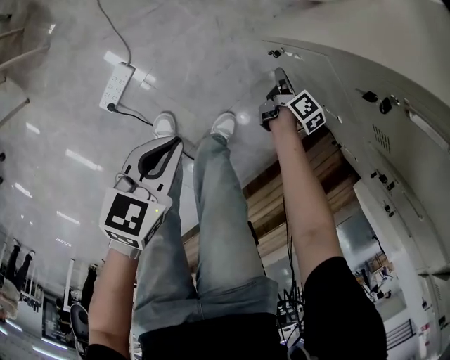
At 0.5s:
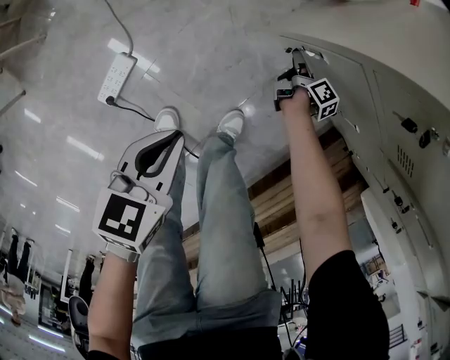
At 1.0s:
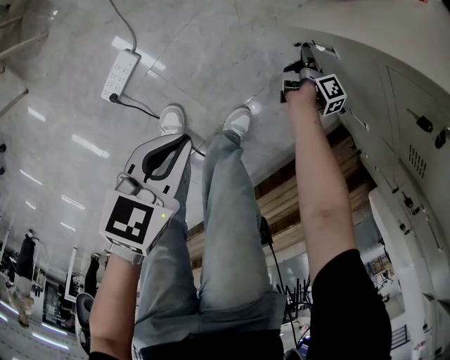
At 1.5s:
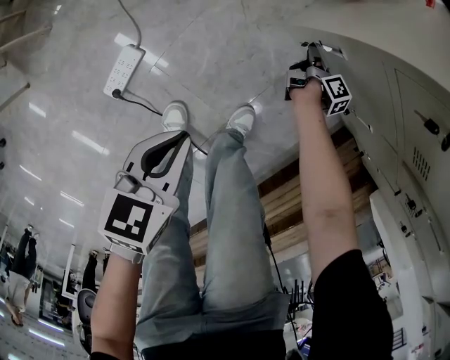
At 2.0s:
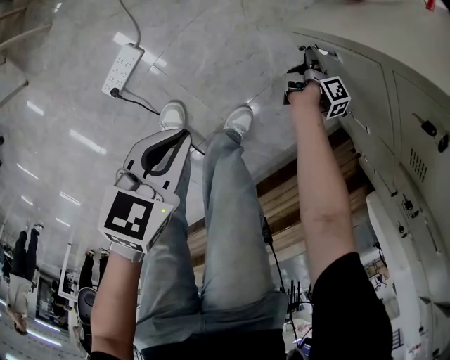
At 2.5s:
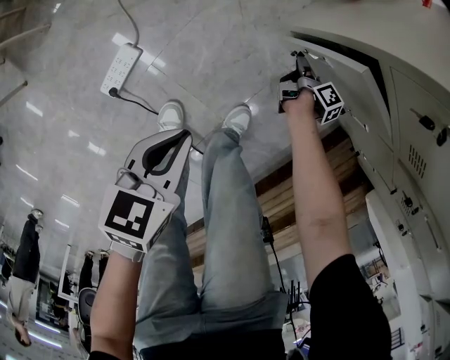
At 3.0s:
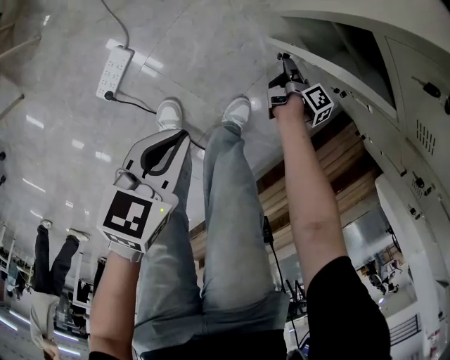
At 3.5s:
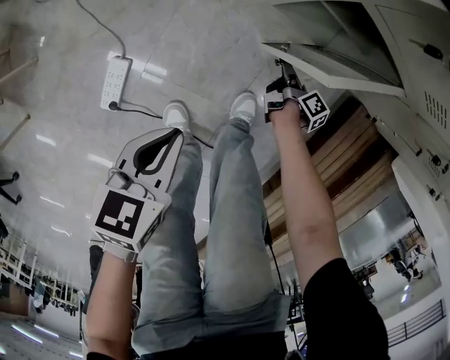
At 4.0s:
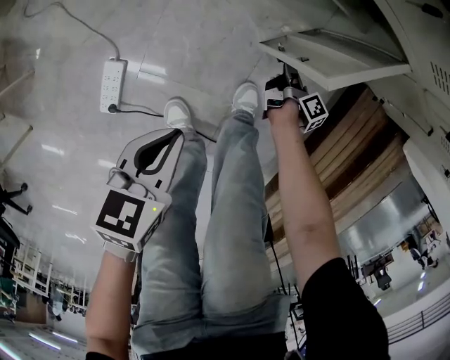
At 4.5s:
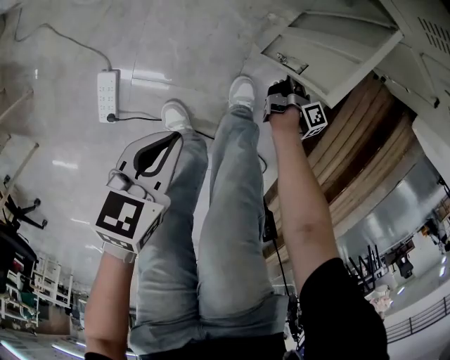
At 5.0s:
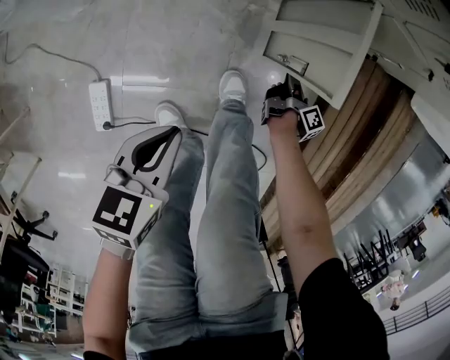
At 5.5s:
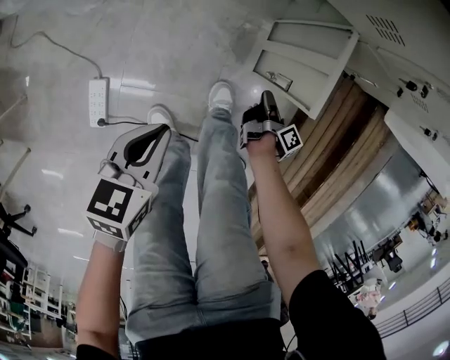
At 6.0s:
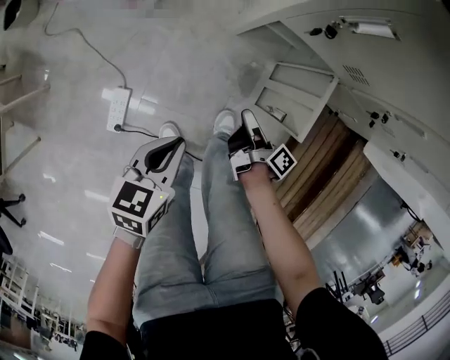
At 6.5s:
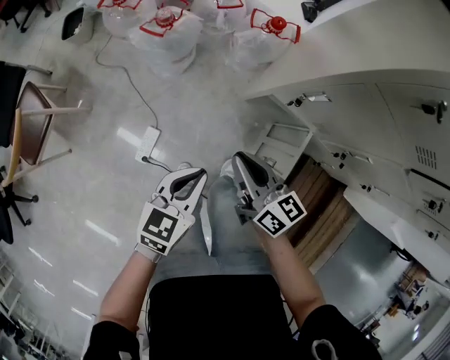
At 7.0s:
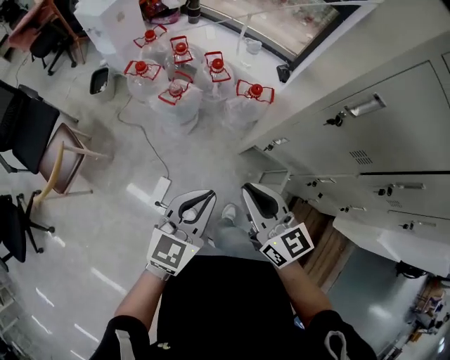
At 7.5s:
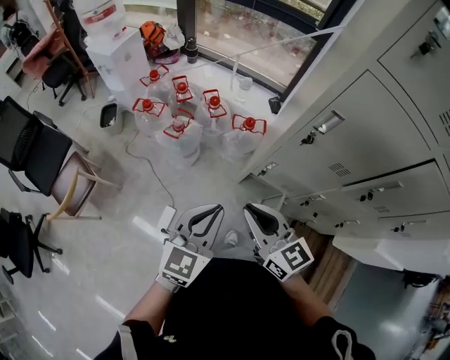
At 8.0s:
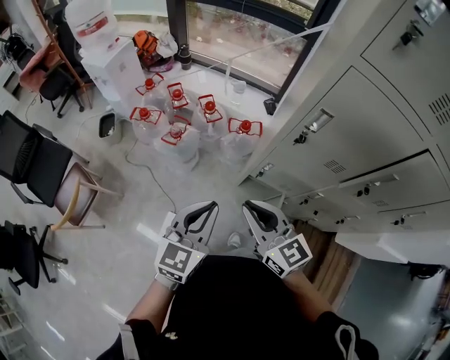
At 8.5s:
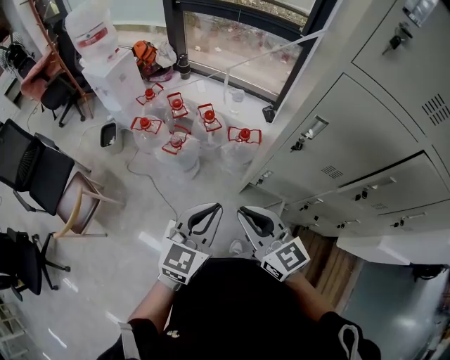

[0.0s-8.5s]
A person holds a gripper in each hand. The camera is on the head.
0.0s to 2.0s: Both grippers move downward, some 10 cm. The right gripper rotates roughly 20 degrees.
2.0s to 4.0s: The right gripper heads backward and to the right, covering approximately 20 cm, and rotates approximately 20 degrees; the left gripper changes place by some 5 cm.
4.0s to 6.5s: The right gripper goes some 60 cm upward, and rotates approximately 80 degrees, while the left gripper shifts some 30 cm upward, and changes its angle by some 20 degrees.
6.5s to 8.5s: Both grippers travel together upward, roughly 35 cm. The left gripper swivels about 30 degrees, while the right gripper changes its angle by roughly 30 degrees.

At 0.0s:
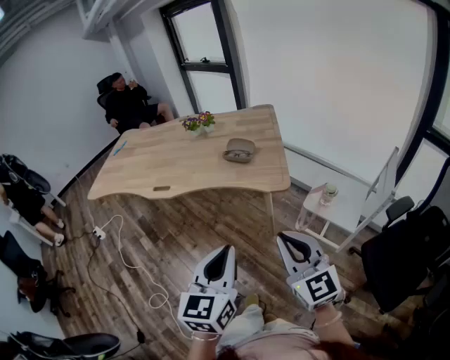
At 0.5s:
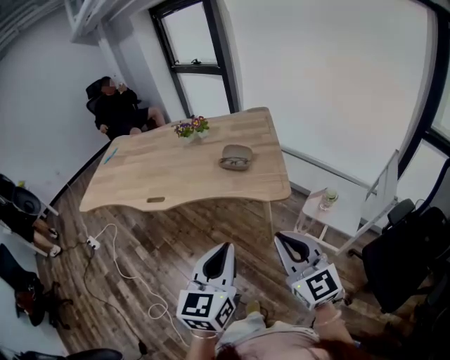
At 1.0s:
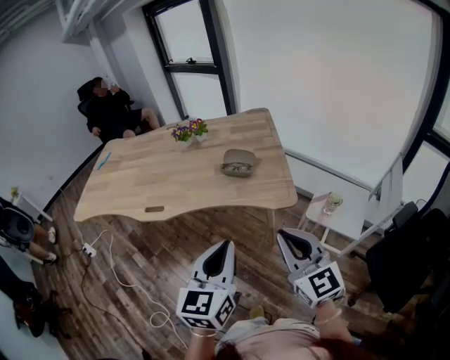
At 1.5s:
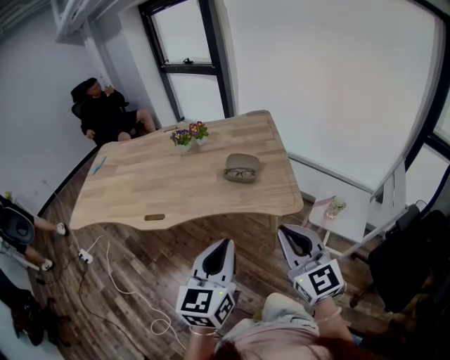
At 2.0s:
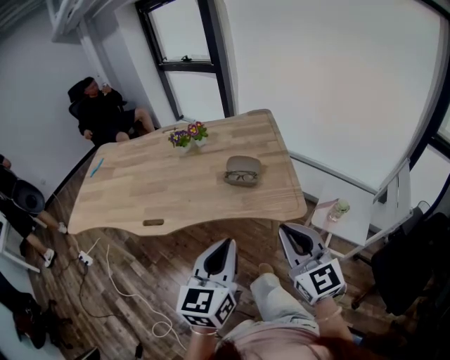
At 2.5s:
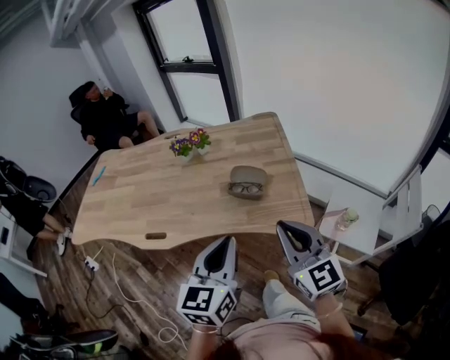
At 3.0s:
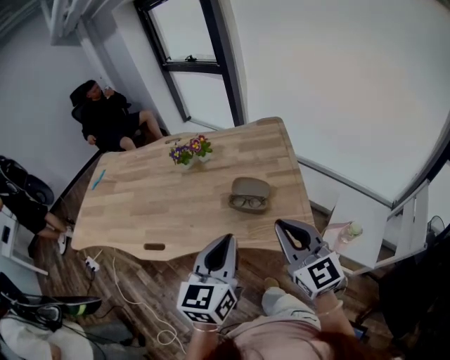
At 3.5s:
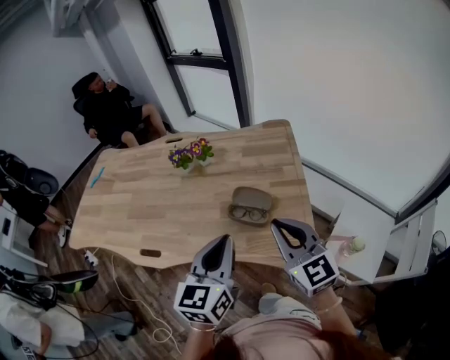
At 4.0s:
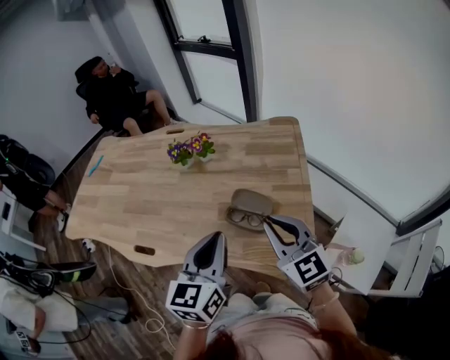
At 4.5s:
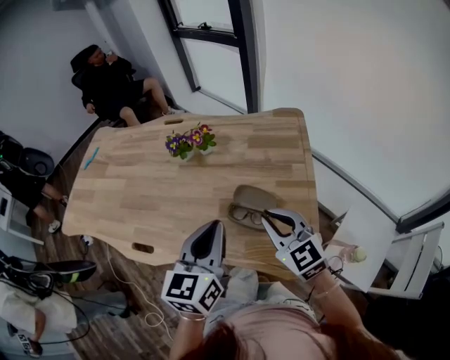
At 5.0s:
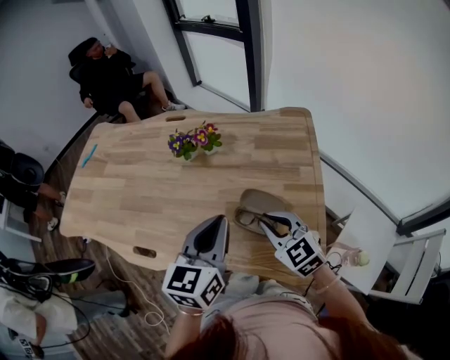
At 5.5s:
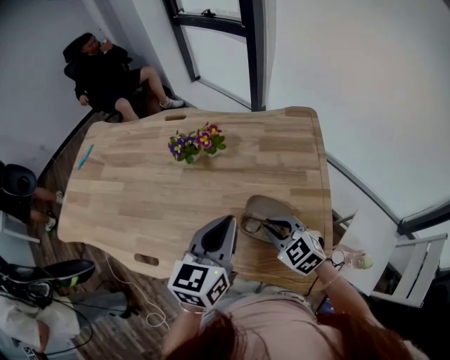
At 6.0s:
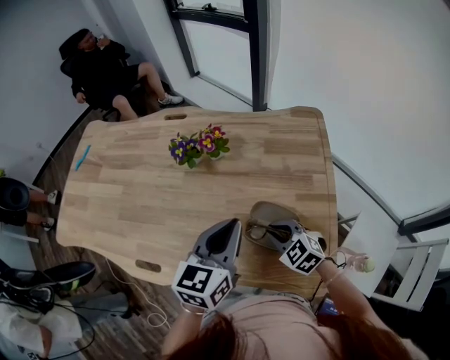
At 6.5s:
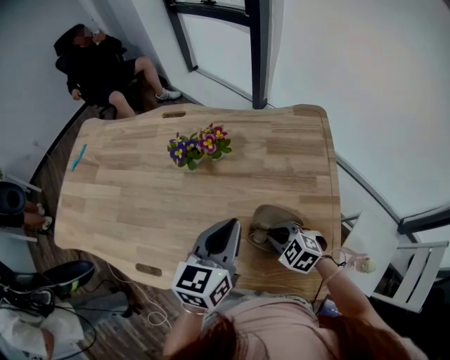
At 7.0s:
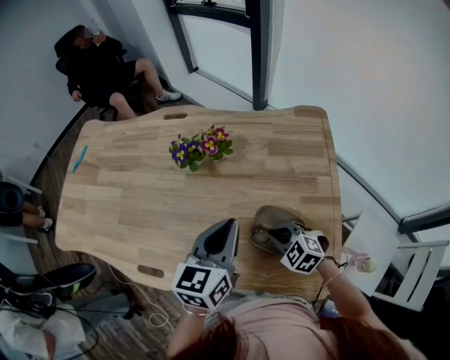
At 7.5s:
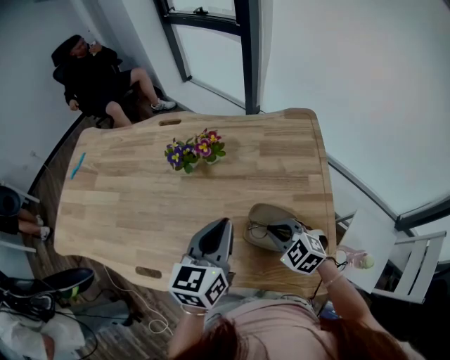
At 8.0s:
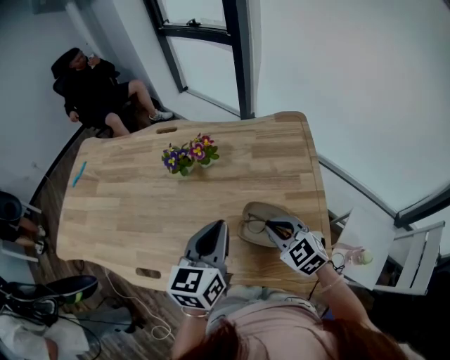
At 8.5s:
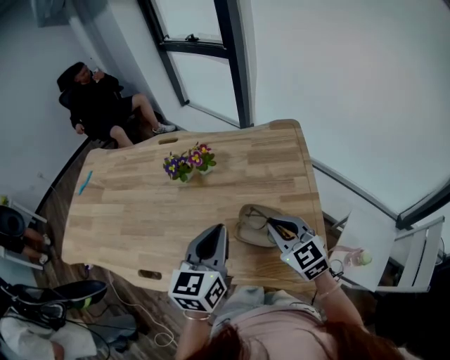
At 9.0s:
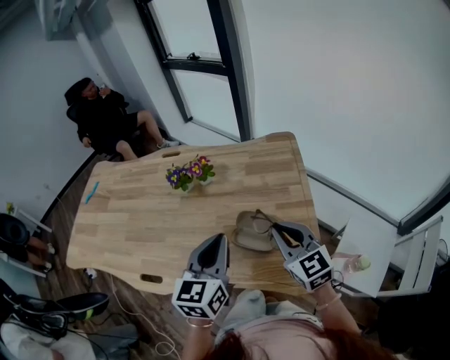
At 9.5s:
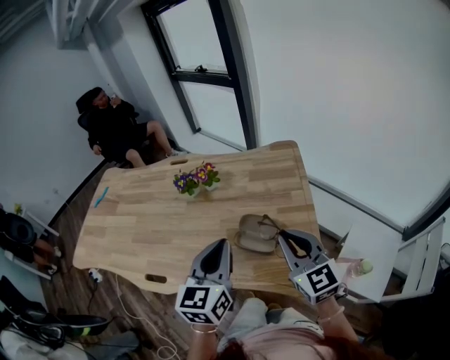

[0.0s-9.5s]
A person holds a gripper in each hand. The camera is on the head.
0.0s to 2.0s: The grippers both shift forward by some 20 cm.
2.0s to 4.0s: Both grippers travel together forward, about 25 cm.
4.0s to 5.5s: The left gripper heads forward, covering about 10 cm; the right gripper heads downward and forward, covering some 20 cm, and swivels roughly 30 degrees.
5.5s to 7.5s: The left gripper ends up approximately 5 cm from where it was.
7.5s to 9.5s: The left gripper goes roughly 15 cm backward and upward; the right gripper heads upward and backward, covering approximately 25 cm, and tips its fingers upward by approximately 40 degrees.

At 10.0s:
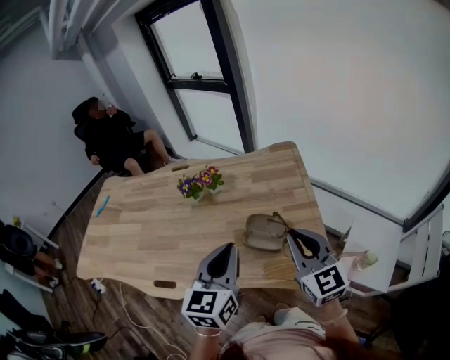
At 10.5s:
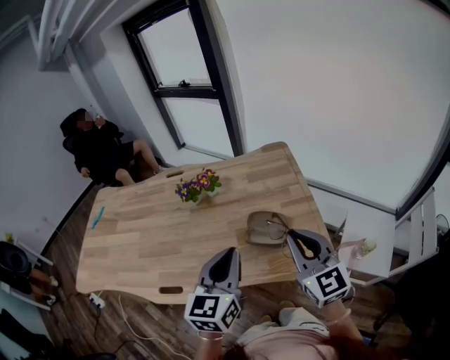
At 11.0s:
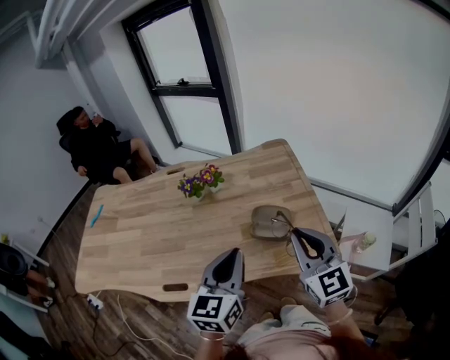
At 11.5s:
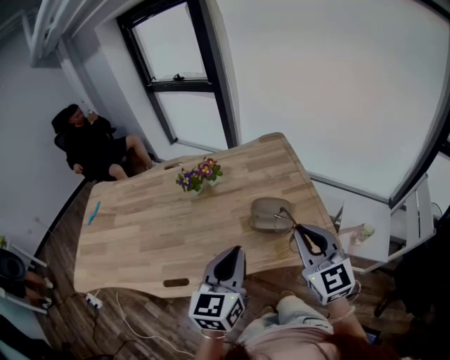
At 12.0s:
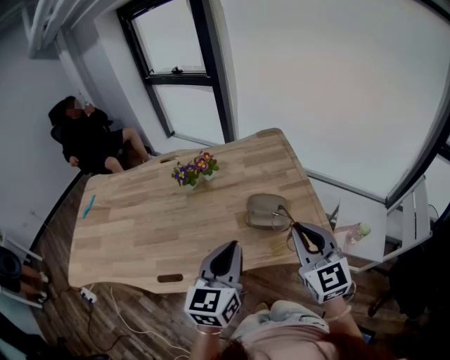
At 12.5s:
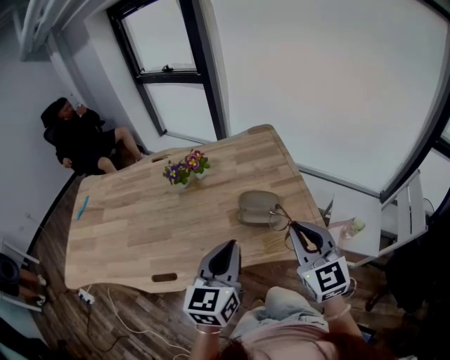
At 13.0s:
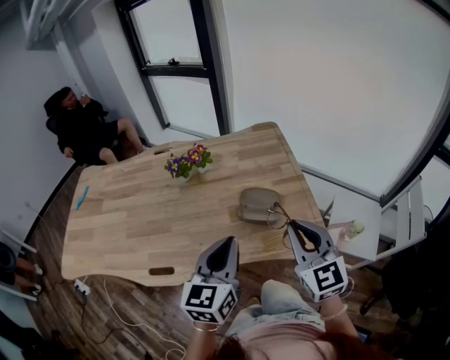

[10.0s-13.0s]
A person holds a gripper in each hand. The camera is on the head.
10.0s to 11.5s: Both grippers travel together backward and to the left, approximately 10 cm.
11.5s to 13.0s: The grippers make only small movements.

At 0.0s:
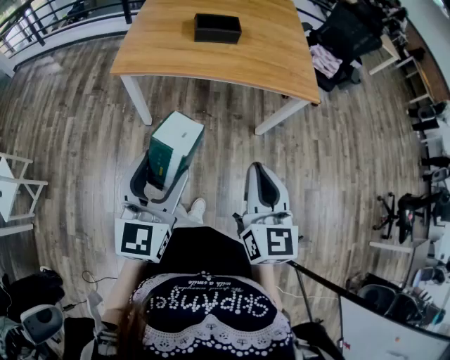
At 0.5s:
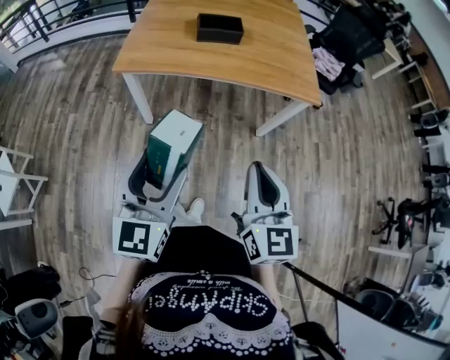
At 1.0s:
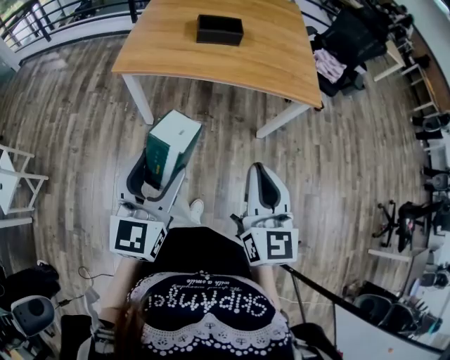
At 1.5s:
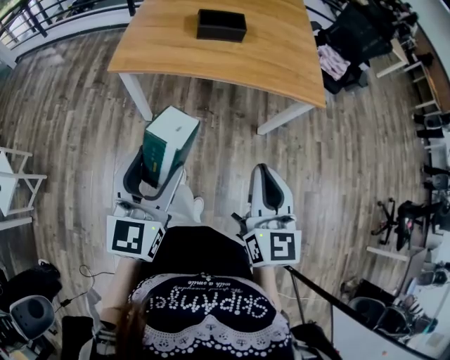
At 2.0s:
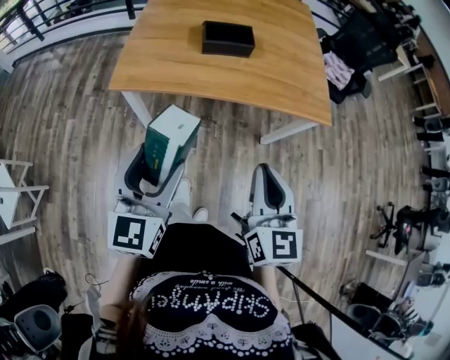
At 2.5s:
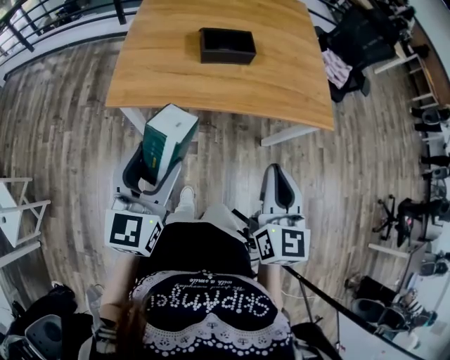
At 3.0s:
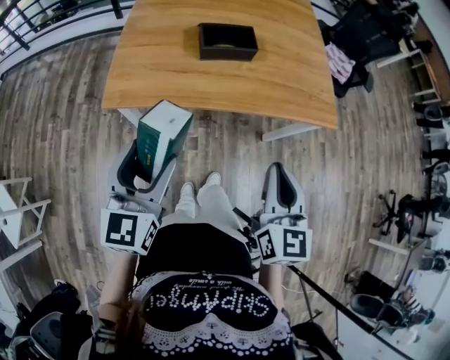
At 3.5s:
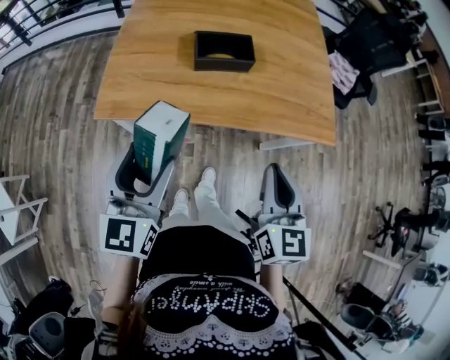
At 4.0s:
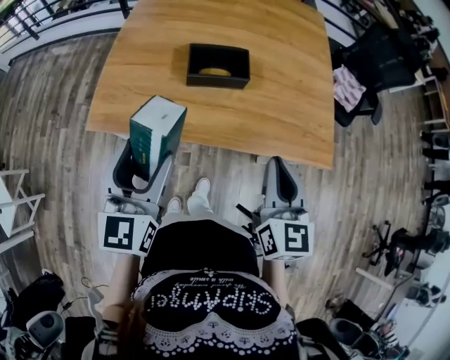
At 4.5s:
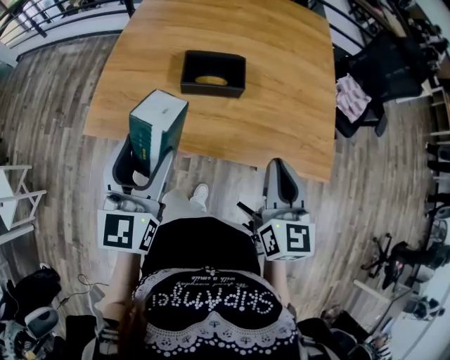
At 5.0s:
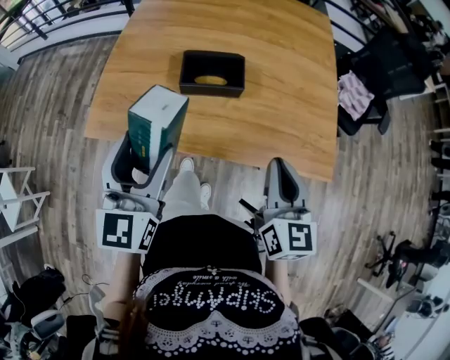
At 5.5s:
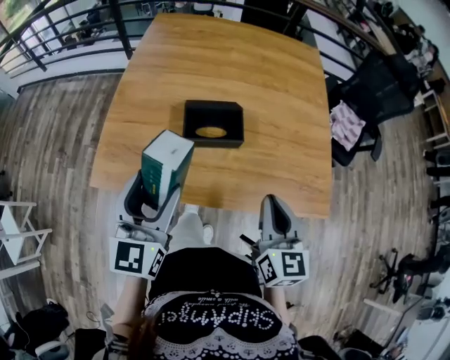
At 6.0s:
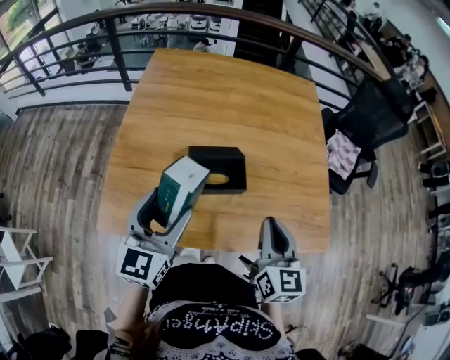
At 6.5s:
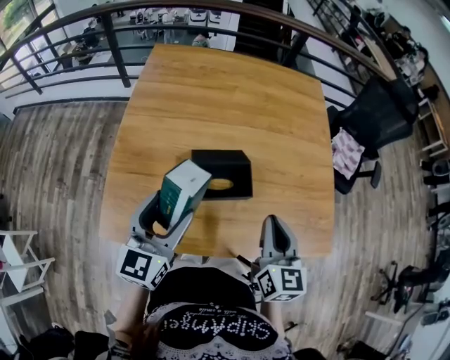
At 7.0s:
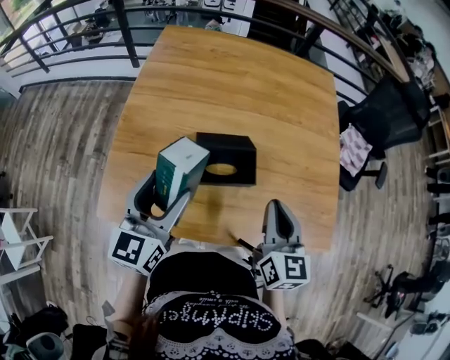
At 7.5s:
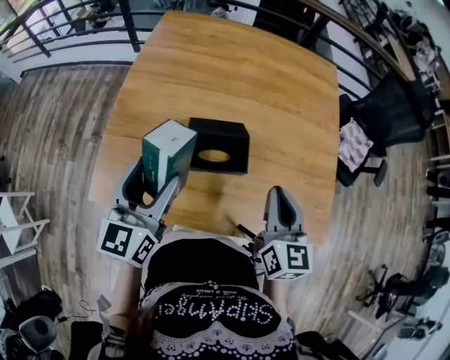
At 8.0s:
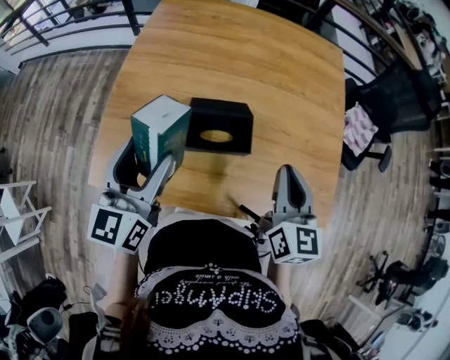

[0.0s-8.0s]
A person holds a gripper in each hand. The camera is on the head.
0.0s to 2.0s: The grippers both shift forward by approximately 15 cm.
2.0s to 4.0s: Both grippers travel together forward, roughly 25 cm.
4.0s to 6.0s: The two grippers go roughly 15 cm forward.
6.0s to 8.0s: The right gripper goes approximately 10 cm forward, while the left gripper ends up about 5 cm from where it was.
